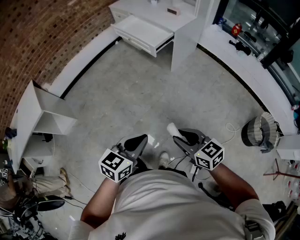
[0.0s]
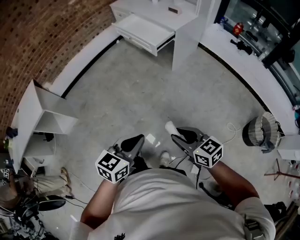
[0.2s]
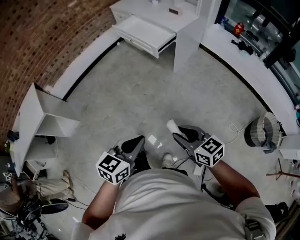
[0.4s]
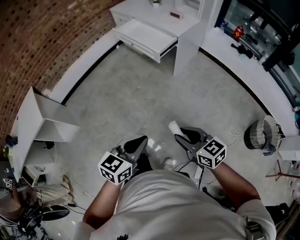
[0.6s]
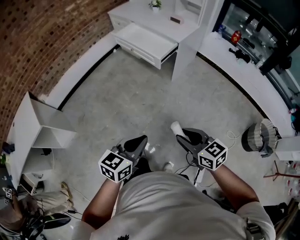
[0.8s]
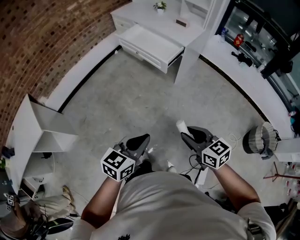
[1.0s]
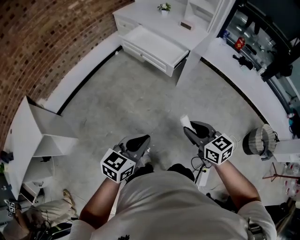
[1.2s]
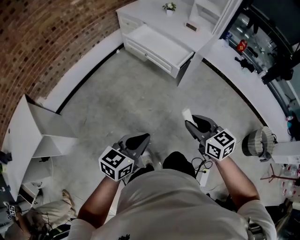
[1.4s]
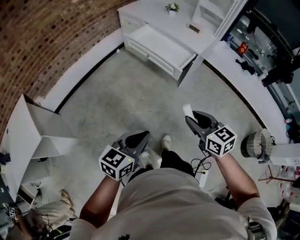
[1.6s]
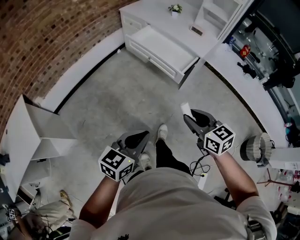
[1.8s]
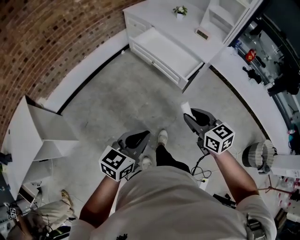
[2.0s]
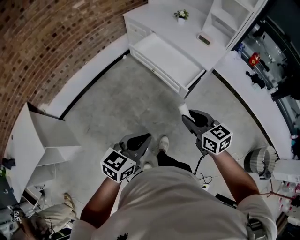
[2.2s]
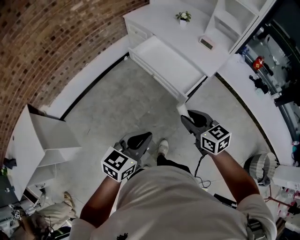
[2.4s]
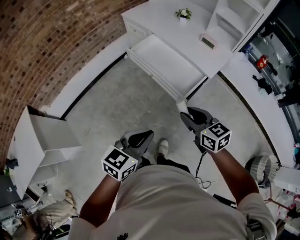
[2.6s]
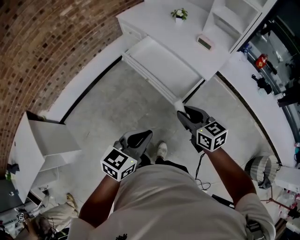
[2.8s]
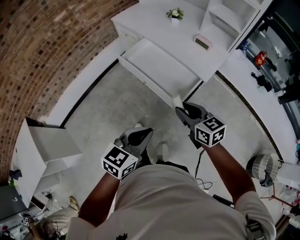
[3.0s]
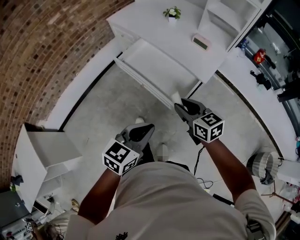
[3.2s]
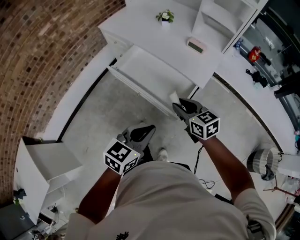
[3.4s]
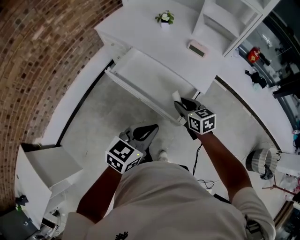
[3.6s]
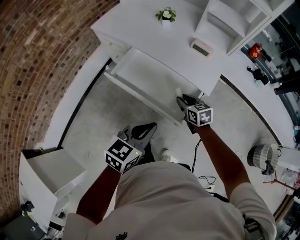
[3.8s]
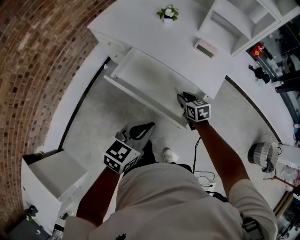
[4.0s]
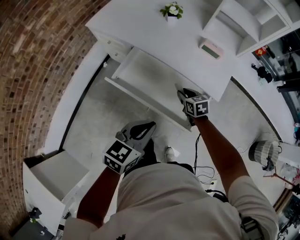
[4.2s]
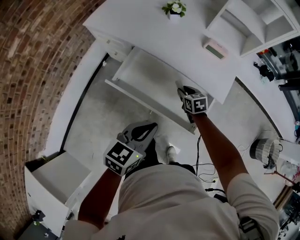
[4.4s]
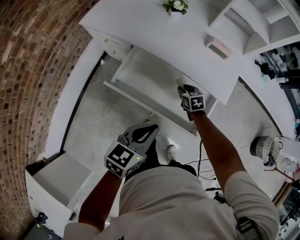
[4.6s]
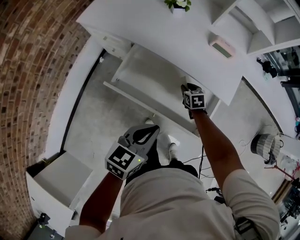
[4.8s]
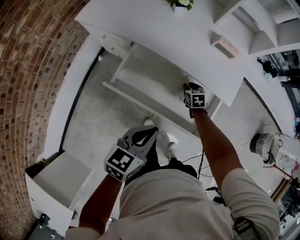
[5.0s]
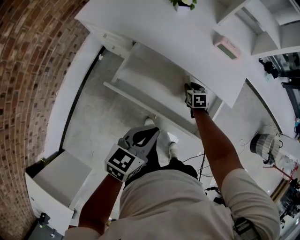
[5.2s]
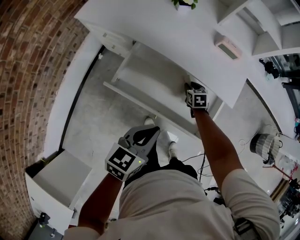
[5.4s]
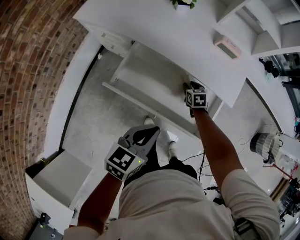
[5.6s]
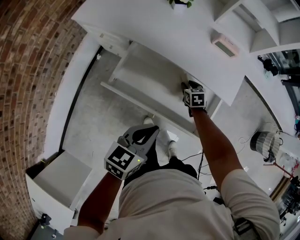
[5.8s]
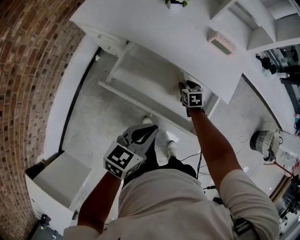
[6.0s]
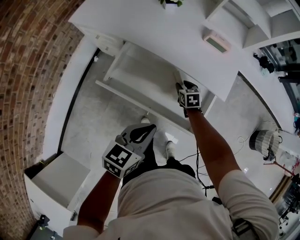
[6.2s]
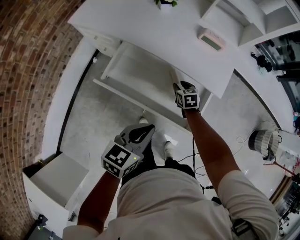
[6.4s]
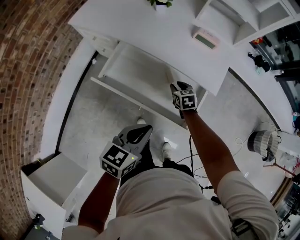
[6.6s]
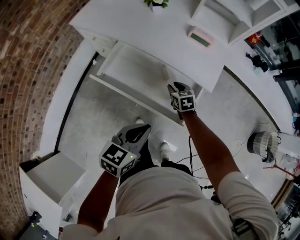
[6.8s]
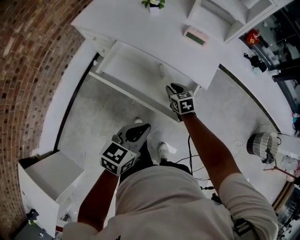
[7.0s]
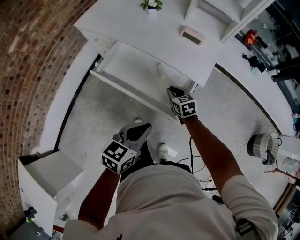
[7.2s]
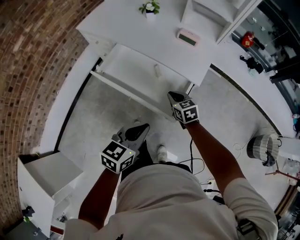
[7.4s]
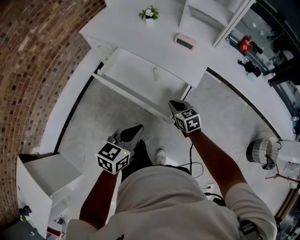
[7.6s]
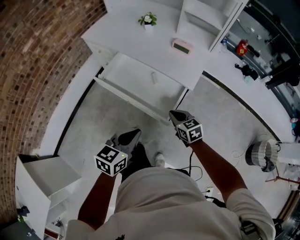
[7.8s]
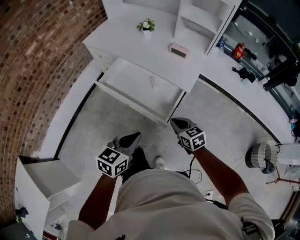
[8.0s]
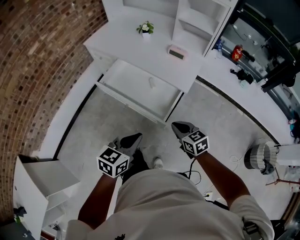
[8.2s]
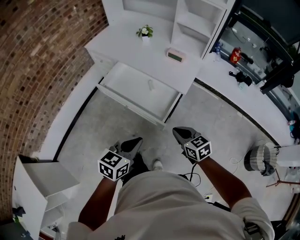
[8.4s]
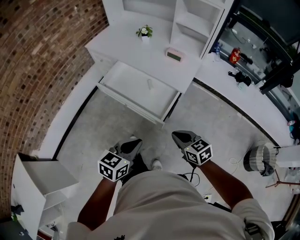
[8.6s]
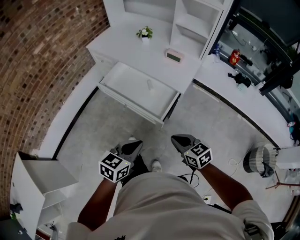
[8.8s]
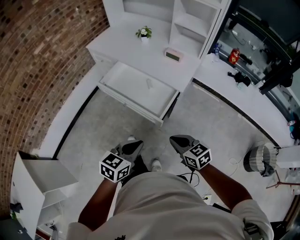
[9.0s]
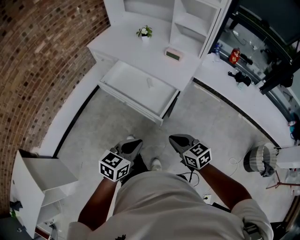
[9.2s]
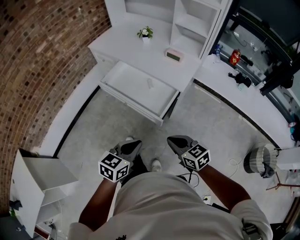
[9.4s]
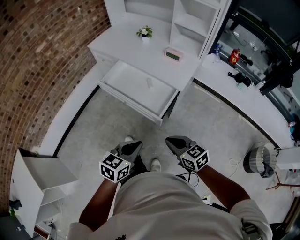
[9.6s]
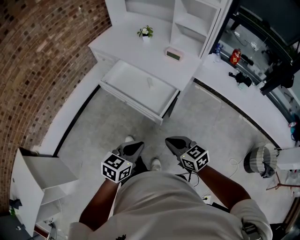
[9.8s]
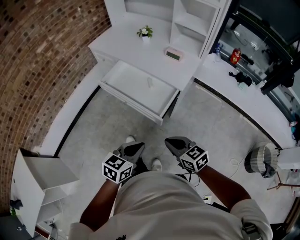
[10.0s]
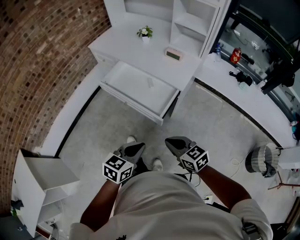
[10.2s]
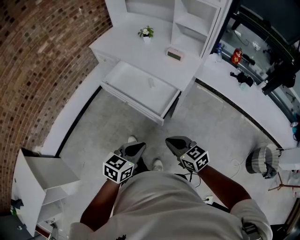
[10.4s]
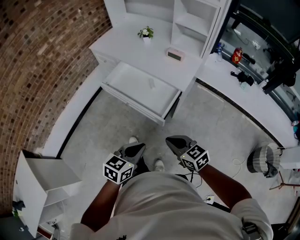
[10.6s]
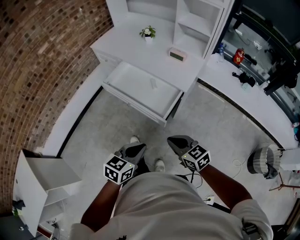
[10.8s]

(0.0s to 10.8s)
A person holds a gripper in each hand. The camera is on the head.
0.0s - 1.6s: The grippers both shift forward and to the left by roughly 35 cm.
1.6s - 3.0s: Both grippers travel together forward, roughly 35 cm.
3.0s - 4.6s: The left gripper travels forward and to the left by about 30 cm; the right gripper travels forward and downward by roughly 50 cm, and tips its fingers downward by approximately 30 degrees.
6.2s - 7.8s: The right gripper is displaced backward, upward and to the right by some 30 cm, changes its angle by approximately 30 degrees, and closes its fingers. Meanwhile the left gripper travels backward, to the right and upward by approximately 20 cm.
7.8s - 9.2s: The left gripper is displaced backward and to the right by approximately 10 cm. Meanwhile the right gripper heads backward and upward, covering roughly 20 cm.
9.2s - 10.8s: There are only small adjustments of the grippers.

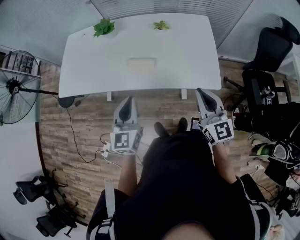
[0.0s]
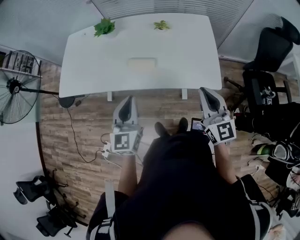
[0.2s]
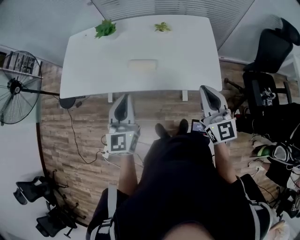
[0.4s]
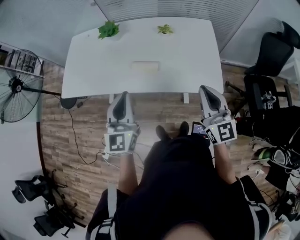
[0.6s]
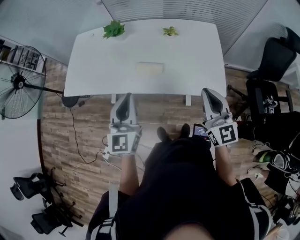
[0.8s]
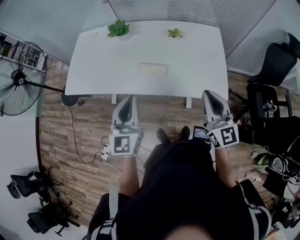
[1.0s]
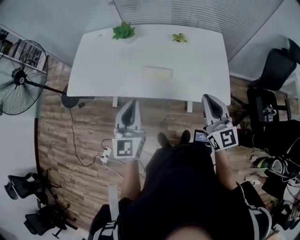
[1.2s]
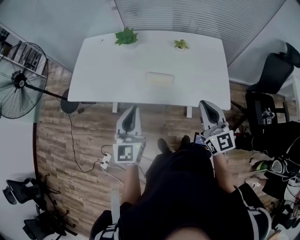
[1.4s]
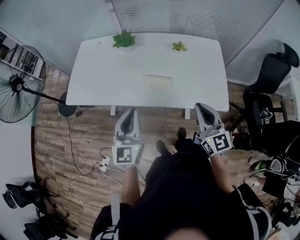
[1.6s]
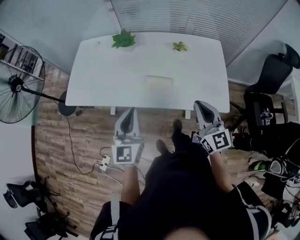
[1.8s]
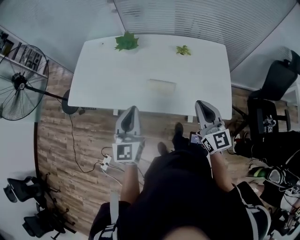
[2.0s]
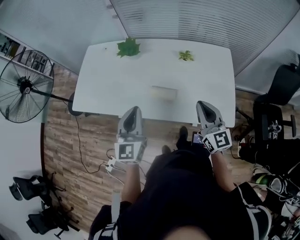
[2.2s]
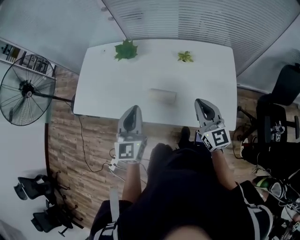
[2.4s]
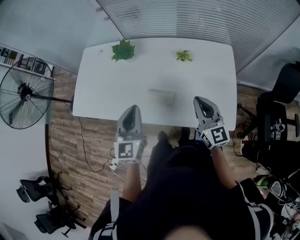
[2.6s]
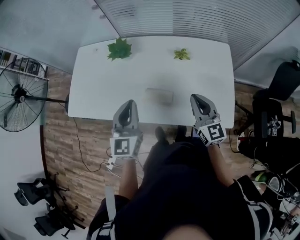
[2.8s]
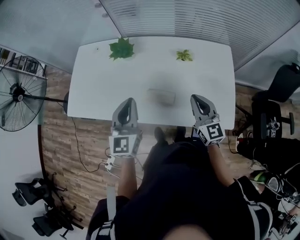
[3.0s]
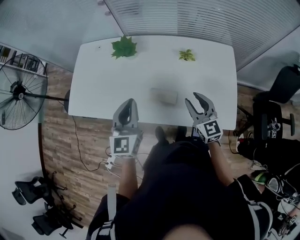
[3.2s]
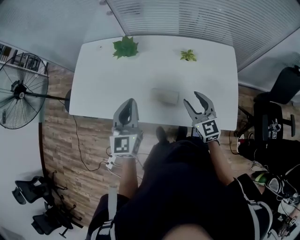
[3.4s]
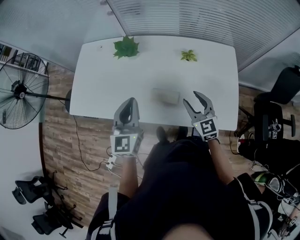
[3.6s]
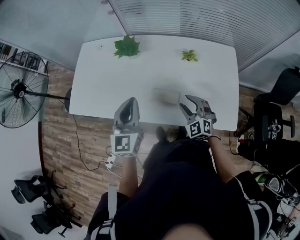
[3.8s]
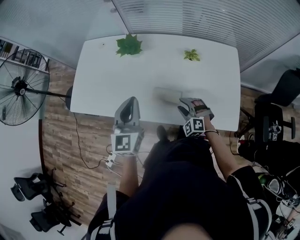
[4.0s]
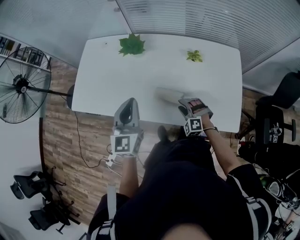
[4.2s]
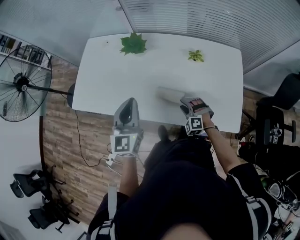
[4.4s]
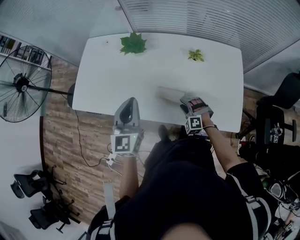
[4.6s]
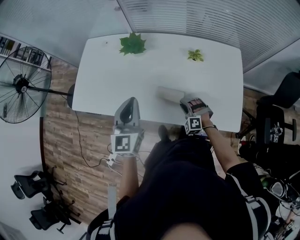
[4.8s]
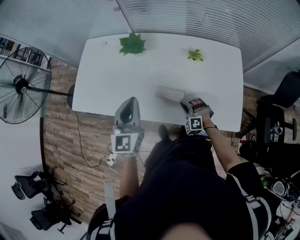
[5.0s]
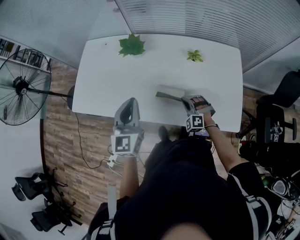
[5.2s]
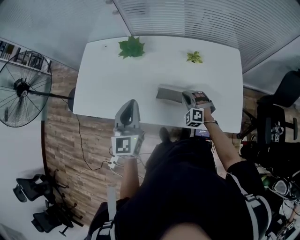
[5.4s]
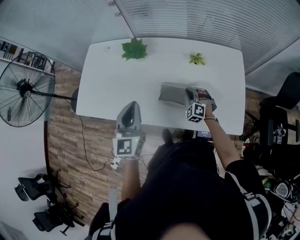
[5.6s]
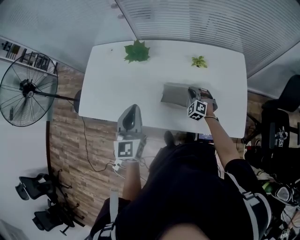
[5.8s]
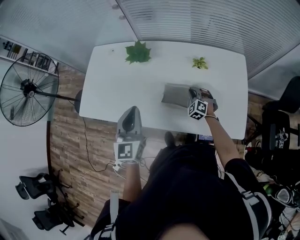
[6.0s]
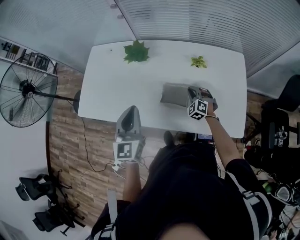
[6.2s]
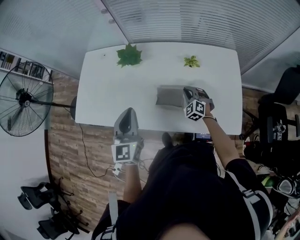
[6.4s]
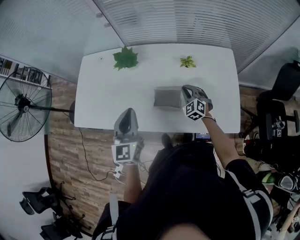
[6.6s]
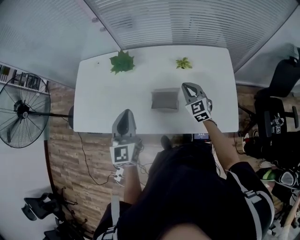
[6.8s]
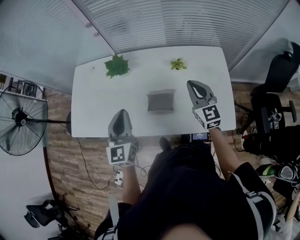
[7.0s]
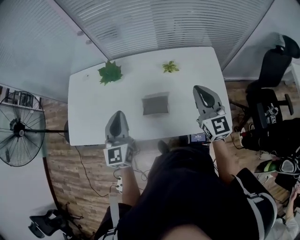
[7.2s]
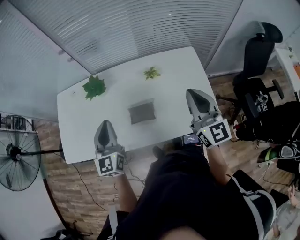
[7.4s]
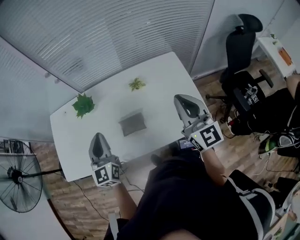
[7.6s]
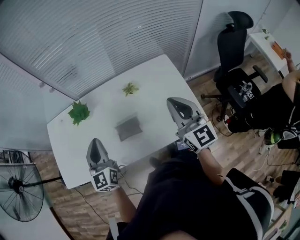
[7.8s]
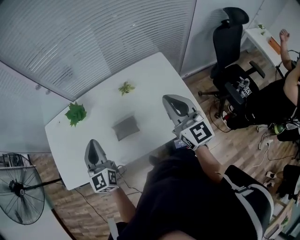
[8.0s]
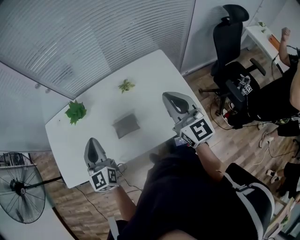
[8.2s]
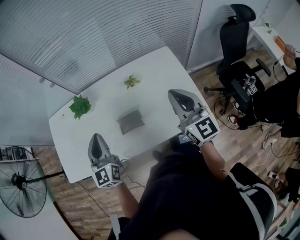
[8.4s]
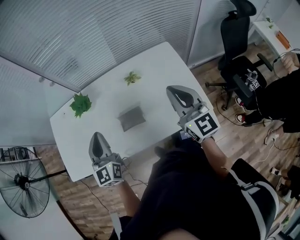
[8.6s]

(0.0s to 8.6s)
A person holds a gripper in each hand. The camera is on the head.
0.0s - 1.4s: The right gripper shifts roughly 10 cm to the left. Meanwhile the left gripper heads to the left and upward, covering some 10 cm.
1.4s - 2.8s: The grippers both shift forward by roughly 20 cm.
2.8s - 4.4s: The right gripper moves downward and to the left, about 25 cm, rolls counterclockwise, seen from behind, by some 70 degrees, and opens up. Meanwhile the left gripper travels to the left by about 5 cm.
4.4s - 5.8s: The right gripper shifts approximately 10 cm forward, changes its angle by approximately 20 degrees, and closes.
5.8s - 7.2s: The right gripper moves upward, approximately 30 cm, and points its fingers approximately 40 degrees further upward.
7.2s - 8.6s: The right gripper shifts by approximately 5 cm.

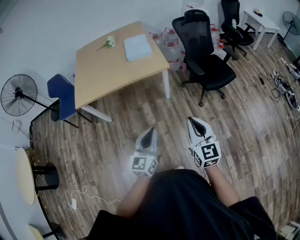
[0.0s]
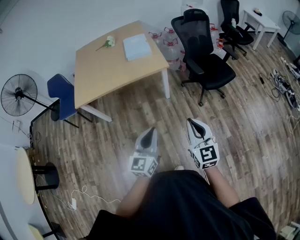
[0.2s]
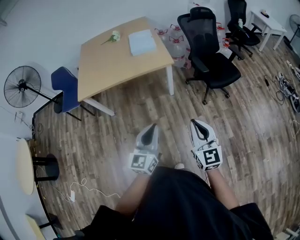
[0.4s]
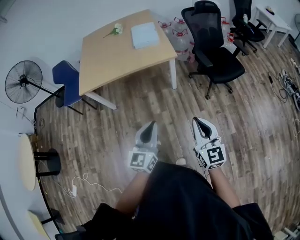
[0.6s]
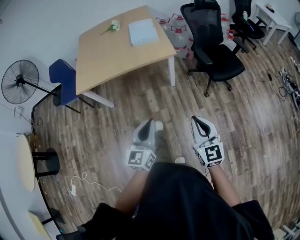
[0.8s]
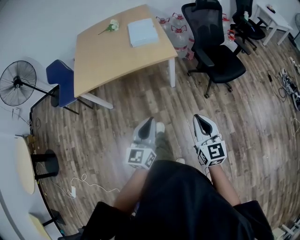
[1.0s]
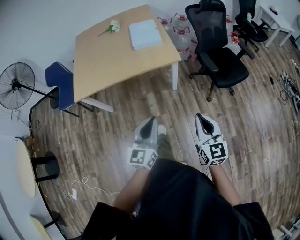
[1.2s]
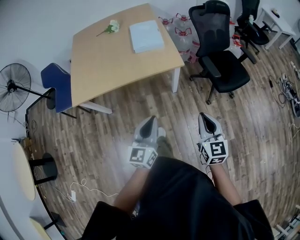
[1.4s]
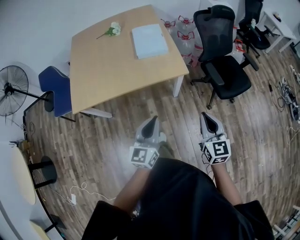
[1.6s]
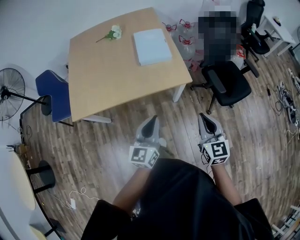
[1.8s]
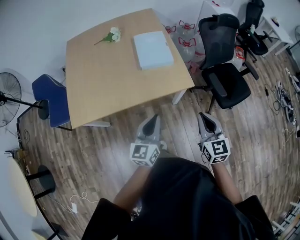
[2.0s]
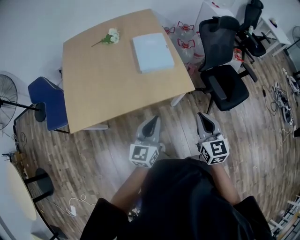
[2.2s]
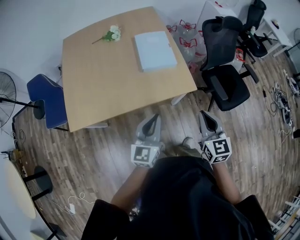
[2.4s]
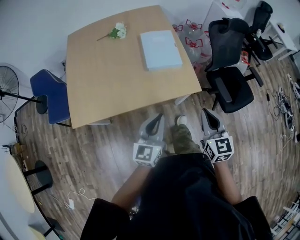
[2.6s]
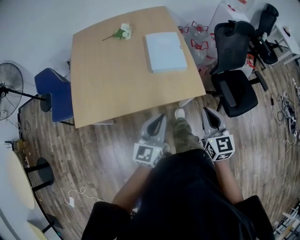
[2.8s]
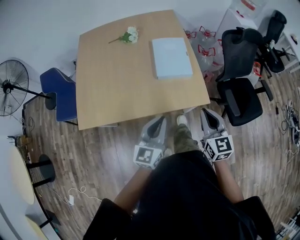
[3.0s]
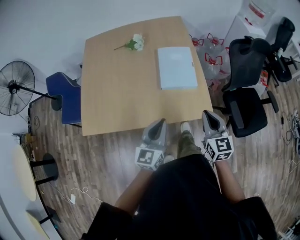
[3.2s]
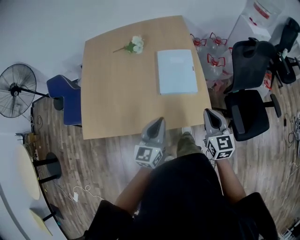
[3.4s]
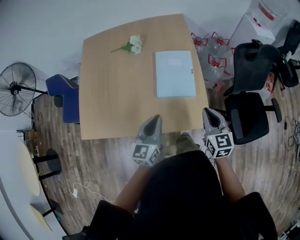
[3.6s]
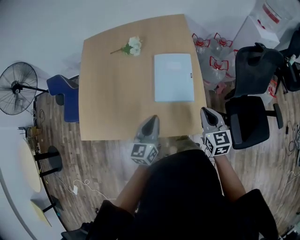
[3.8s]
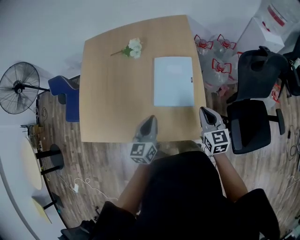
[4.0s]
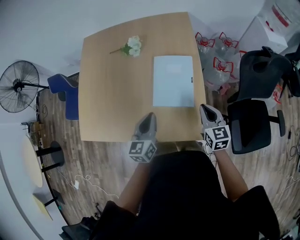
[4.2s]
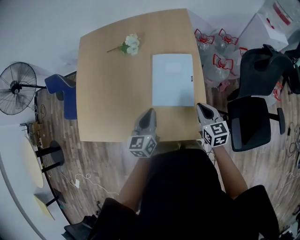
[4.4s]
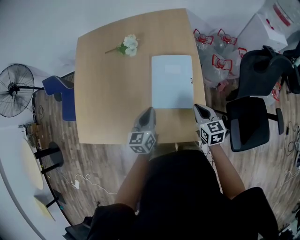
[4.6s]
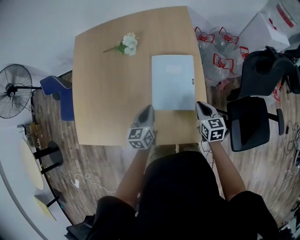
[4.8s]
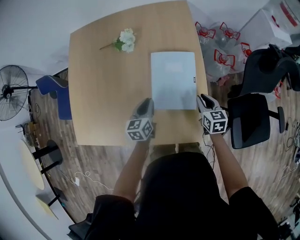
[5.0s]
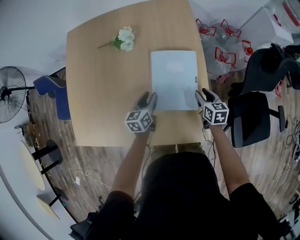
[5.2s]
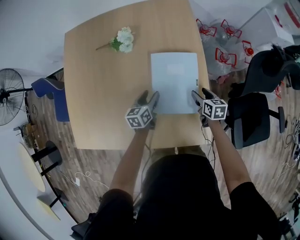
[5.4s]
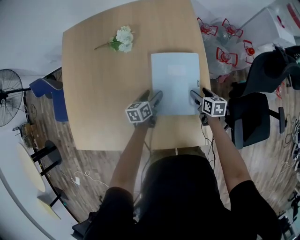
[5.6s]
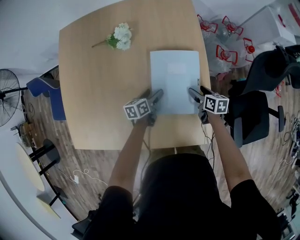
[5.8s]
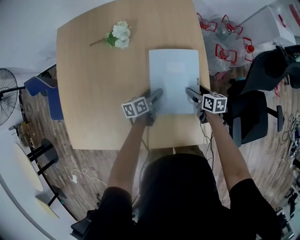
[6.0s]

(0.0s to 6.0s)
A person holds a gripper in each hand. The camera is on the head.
0.0s - 1.6s: The two grippers go about 30 cm forward.
1.6s - 3.0s: Both grippers move forward and to the left, approximately 30 cm.
3.0s - 4.4s: Both grippers travel together forward, some 35 cm. The left gripper turns by some 20 degrees. Meanwhile the right gripper swivels approximately 20 degrees.
4.4s - 6.0s: The two grippers go roughly 30 cm downward and forward. The left gripper changes its angle by roughly 40 degrees, and opens. Meanwhile the right gripper swivels about 30 degrees, and opens up.
